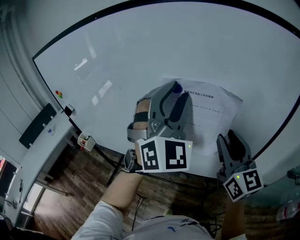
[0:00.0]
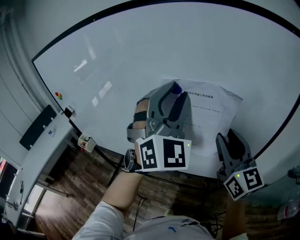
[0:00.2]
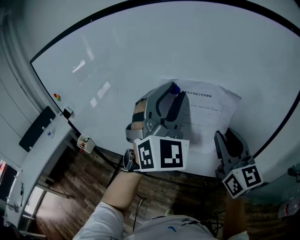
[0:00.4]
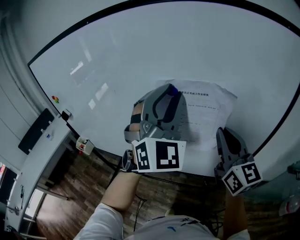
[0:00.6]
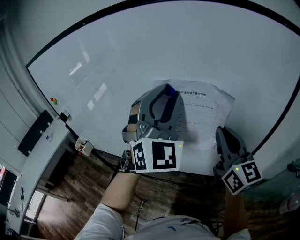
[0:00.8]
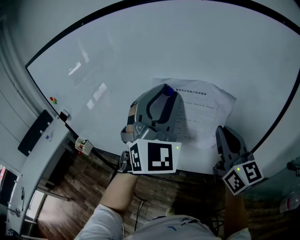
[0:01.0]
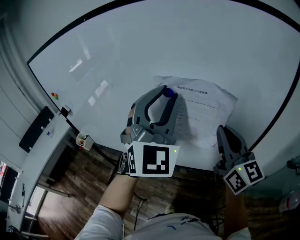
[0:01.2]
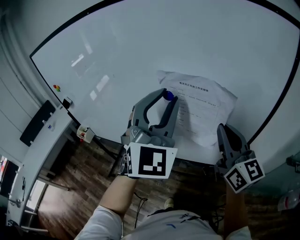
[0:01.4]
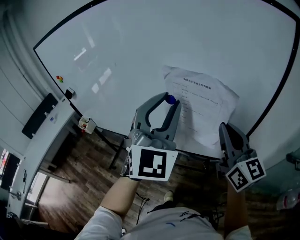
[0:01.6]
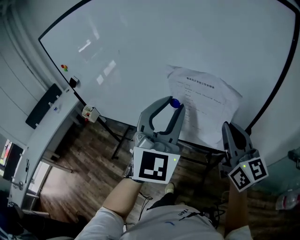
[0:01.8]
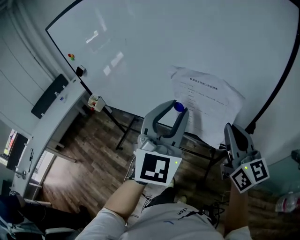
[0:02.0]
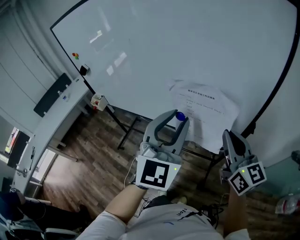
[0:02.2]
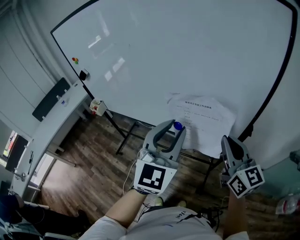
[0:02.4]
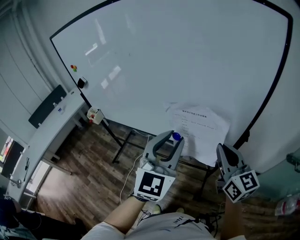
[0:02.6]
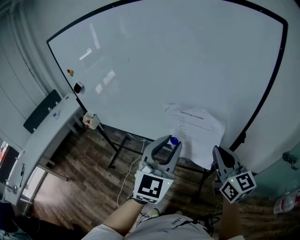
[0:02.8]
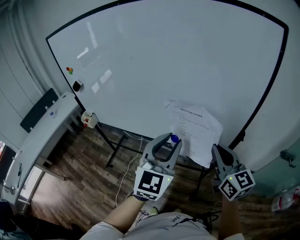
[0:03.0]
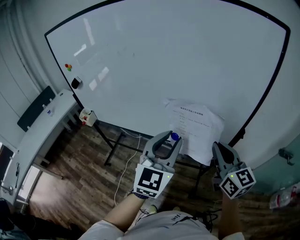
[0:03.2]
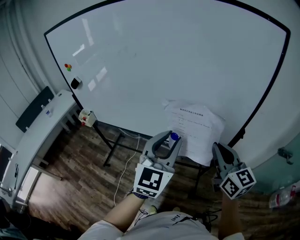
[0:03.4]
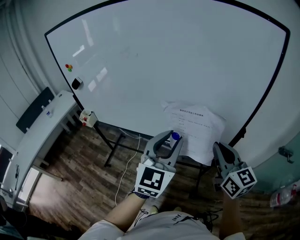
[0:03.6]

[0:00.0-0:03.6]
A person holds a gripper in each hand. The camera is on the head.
0:00.0 to 0:01.8: The grippers both shift backward and downward by some 15 cm. The left gripper changes its angle by roughly 20 degrees. The right gripper closes.
0:01.8 to 0:03.6: The right gripper is displaced to the left by roughly 5 cm. Meanwhile the left gripper travels downward and to the left by approximately 10 cm, and turns by approximately 20 degrees.

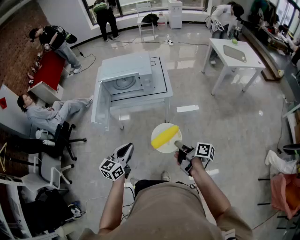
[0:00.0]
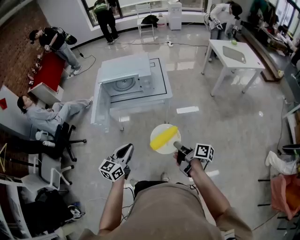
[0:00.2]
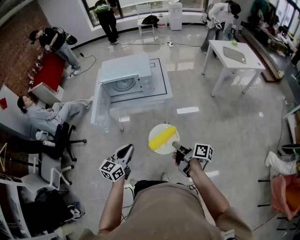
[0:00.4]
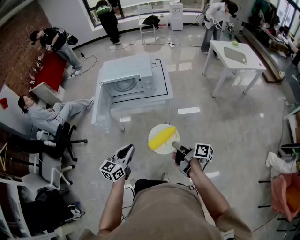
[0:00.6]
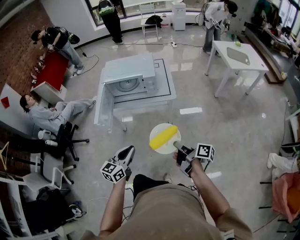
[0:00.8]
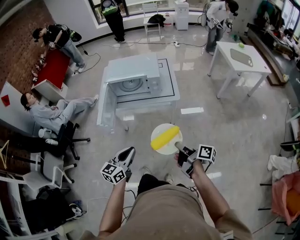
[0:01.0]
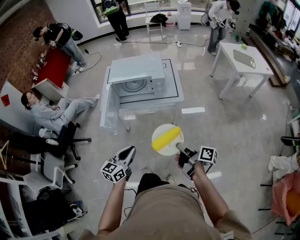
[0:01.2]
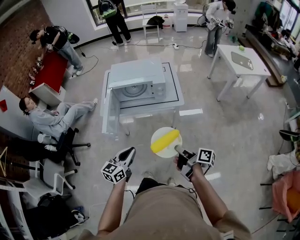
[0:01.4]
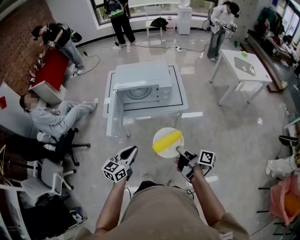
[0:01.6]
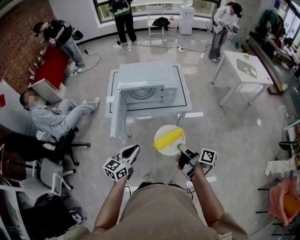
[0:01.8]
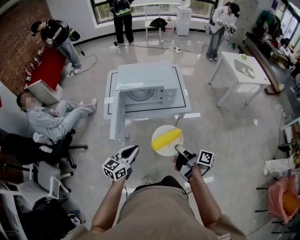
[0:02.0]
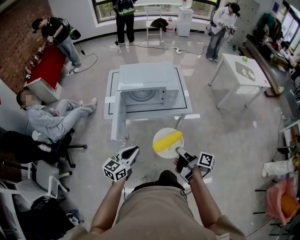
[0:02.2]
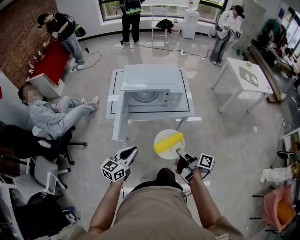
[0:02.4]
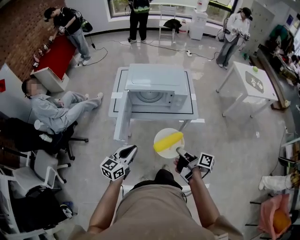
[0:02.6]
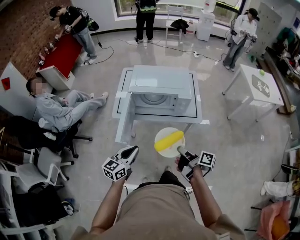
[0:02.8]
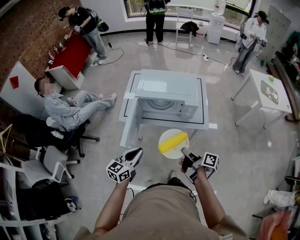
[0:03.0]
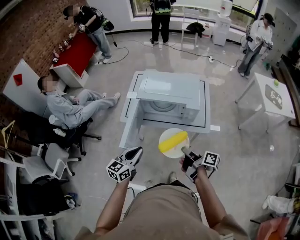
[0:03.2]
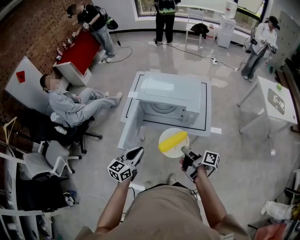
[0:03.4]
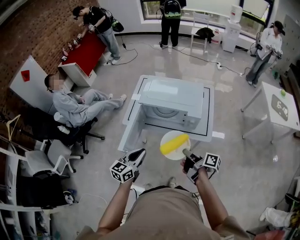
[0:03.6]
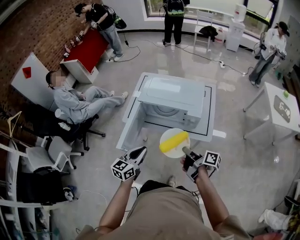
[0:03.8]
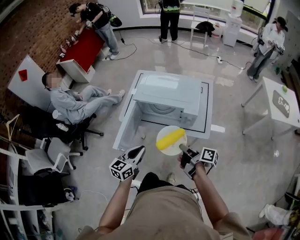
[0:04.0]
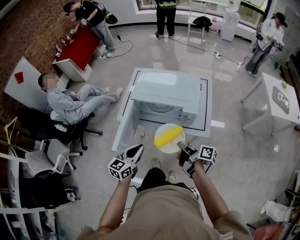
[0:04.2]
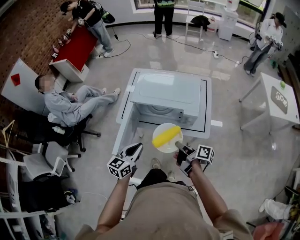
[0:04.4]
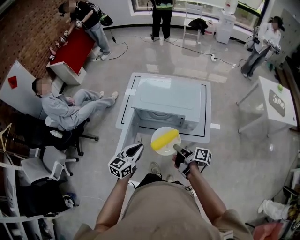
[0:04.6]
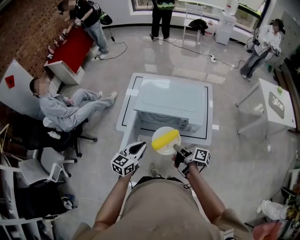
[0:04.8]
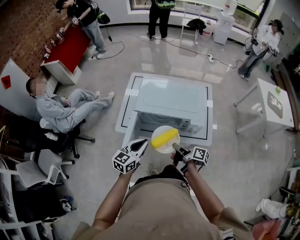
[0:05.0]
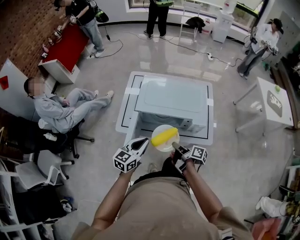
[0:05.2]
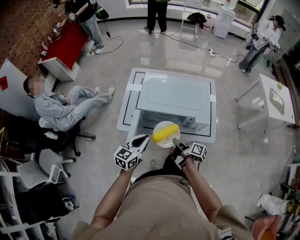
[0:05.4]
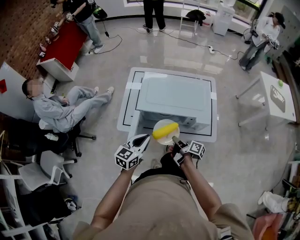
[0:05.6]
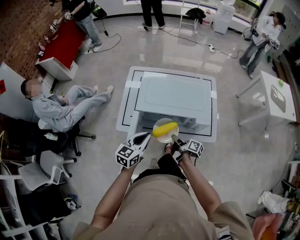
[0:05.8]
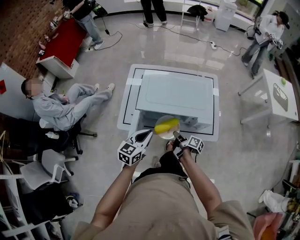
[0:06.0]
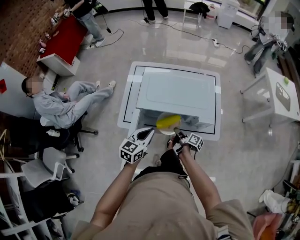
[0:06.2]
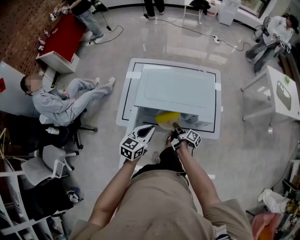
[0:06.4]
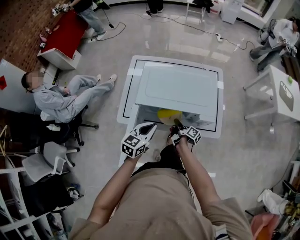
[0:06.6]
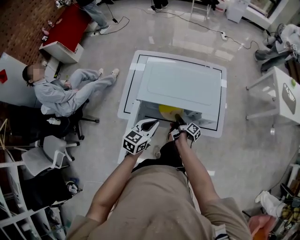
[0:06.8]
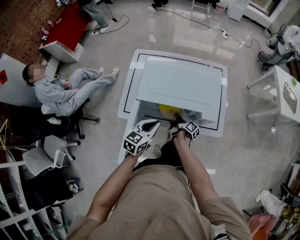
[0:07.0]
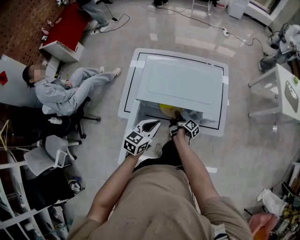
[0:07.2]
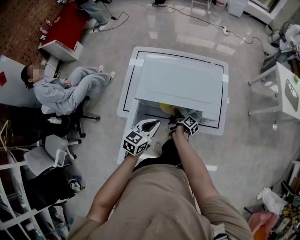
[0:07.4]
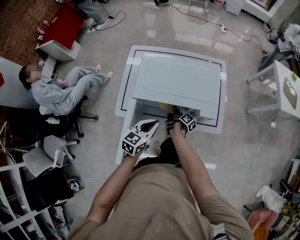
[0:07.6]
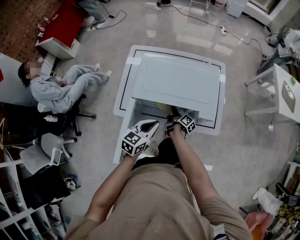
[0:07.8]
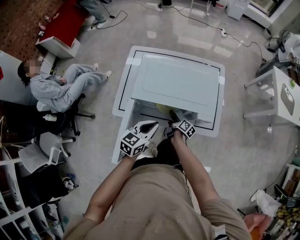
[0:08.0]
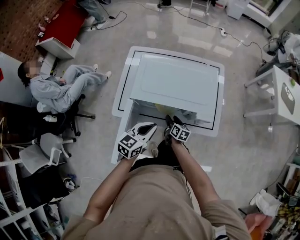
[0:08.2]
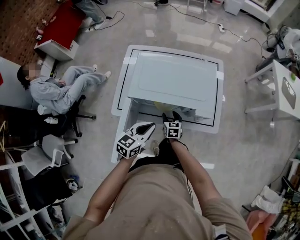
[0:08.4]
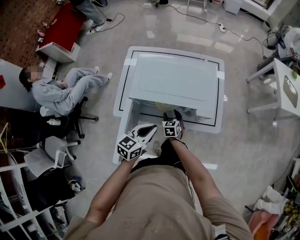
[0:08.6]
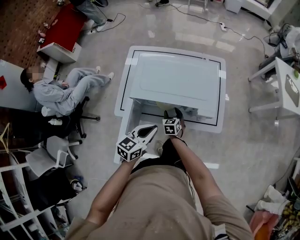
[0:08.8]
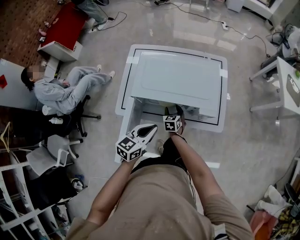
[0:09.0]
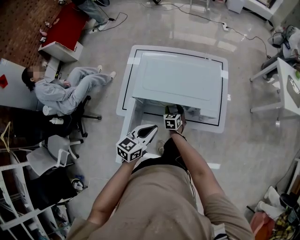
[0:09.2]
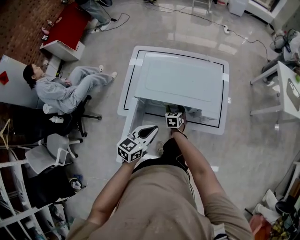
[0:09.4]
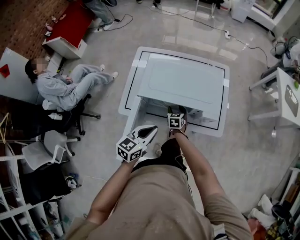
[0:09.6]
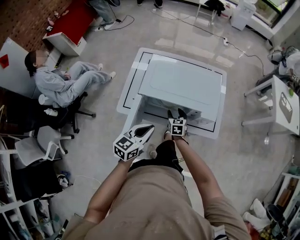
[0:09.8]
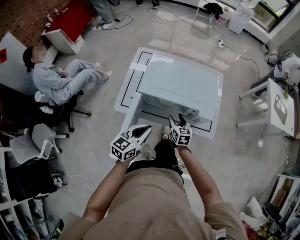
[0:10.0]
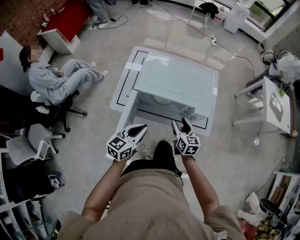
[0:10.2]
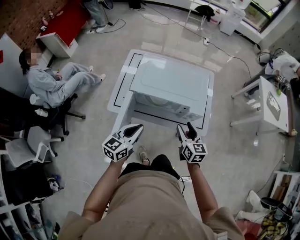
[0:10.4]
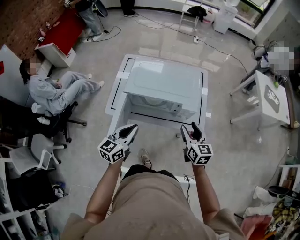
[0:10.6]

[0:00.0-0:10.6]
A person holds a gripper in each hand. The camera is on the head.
0:00.0 to 0:01.6: The two grippers go some 15 cm to the left and forward.
0:01.6 to 0:03.0: Both grippers travel together forward and to the left, about 15 cm.
0:03.0 to 0:04.6: The two grippers go some 15 cm forward.
0:04.6 to 0:06.0: The left gripper shifts roughly 15 cm forward, while the right gripper is displaced downward and forward by approximately 20 cm.
0:06.0 to 0:07.6: The right gripper shifts roughly 15 cm forward and downward; the left gripper moves roughly 5 cm.
0:07.6 to 0:09.0: The right gripper rolls counterclockwise, seen from behind, by some 80 degrees, and opens its fingers.
0:09.0 to 0:10.6: The left gripper shifts some 10 cm backward and upward. Meanwhile the right gripper travels upward, to the right and backward by approximately 35 cm, and swivels some 30 degrees.

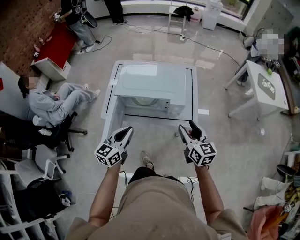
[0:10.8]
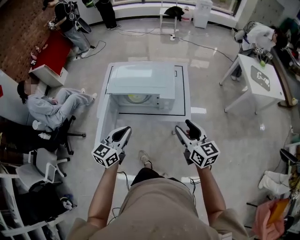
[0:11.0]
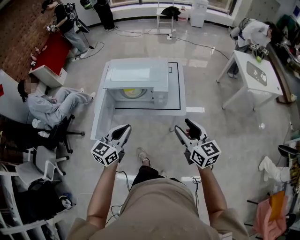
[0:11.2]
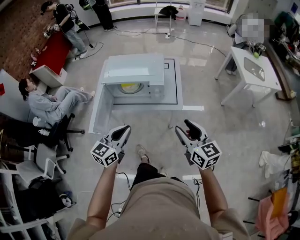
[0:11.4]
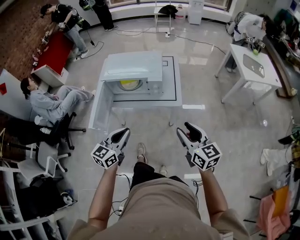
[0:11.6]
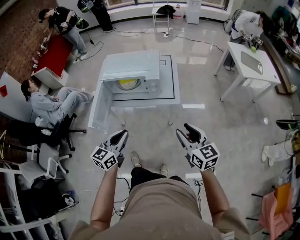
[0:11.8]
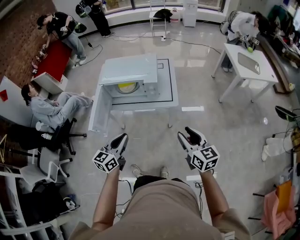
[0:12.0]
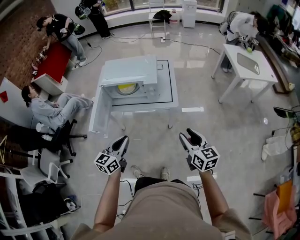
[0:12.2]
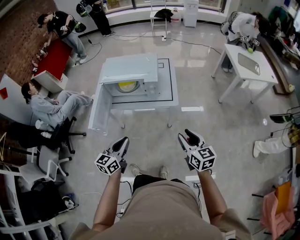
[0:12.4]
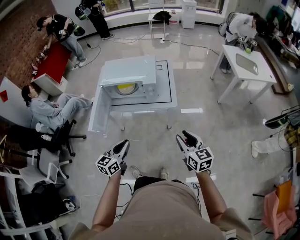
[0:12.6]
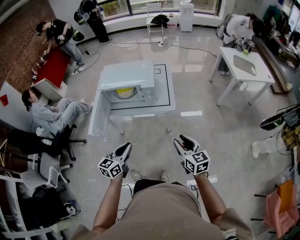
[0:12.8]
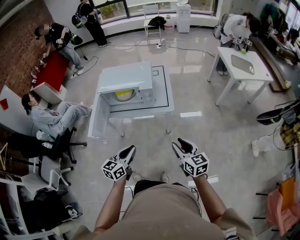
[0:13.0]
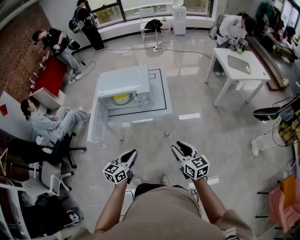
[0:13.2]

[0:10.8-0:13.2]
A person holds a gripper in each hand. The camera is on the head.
0:10.8 to 0:12.0: Both grippers move backward and to the right, some 25 cm.
0:12.0 to 0:13.2: The right gripper shifts by roughly 5 cm. The left gripper shifts approximately 5 cm to the right.

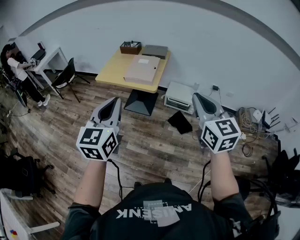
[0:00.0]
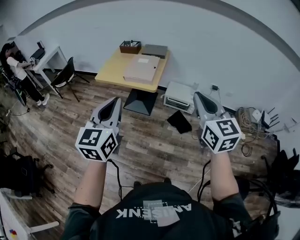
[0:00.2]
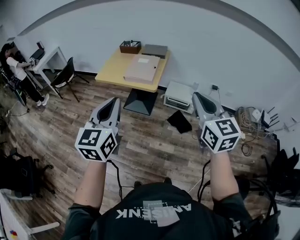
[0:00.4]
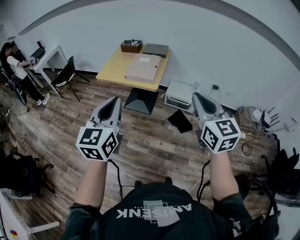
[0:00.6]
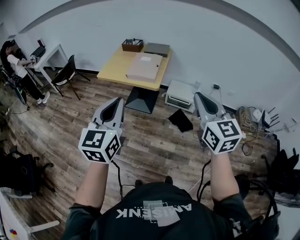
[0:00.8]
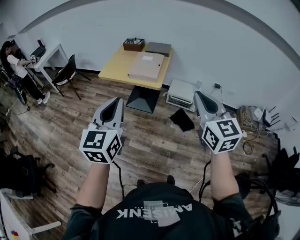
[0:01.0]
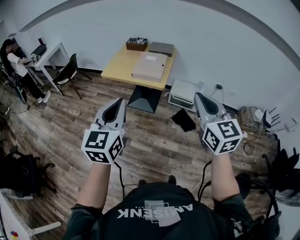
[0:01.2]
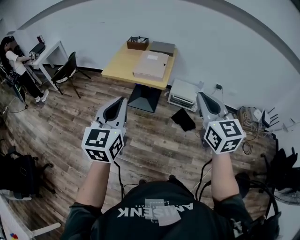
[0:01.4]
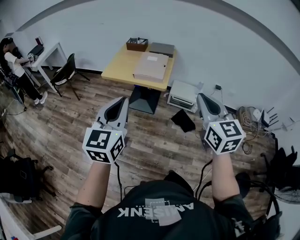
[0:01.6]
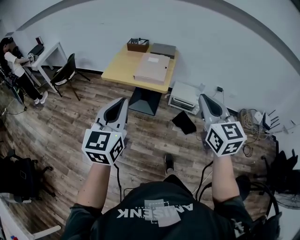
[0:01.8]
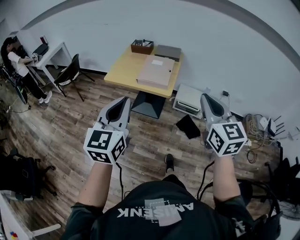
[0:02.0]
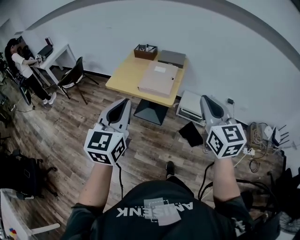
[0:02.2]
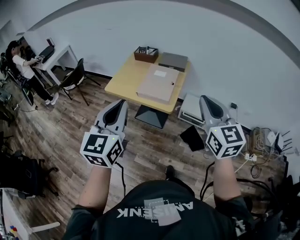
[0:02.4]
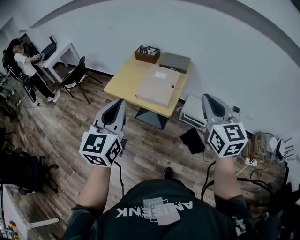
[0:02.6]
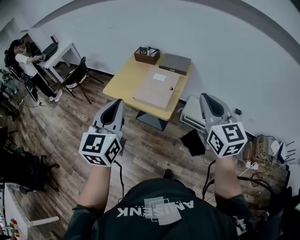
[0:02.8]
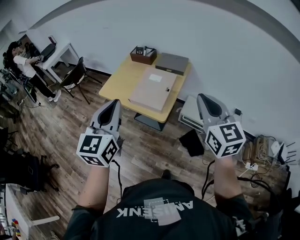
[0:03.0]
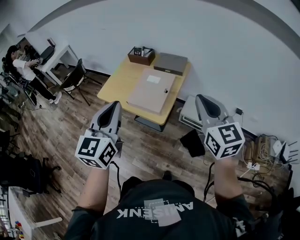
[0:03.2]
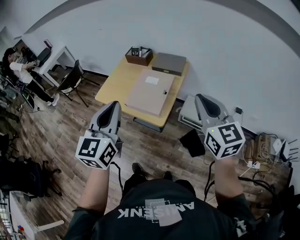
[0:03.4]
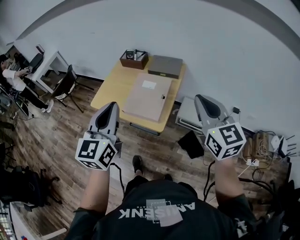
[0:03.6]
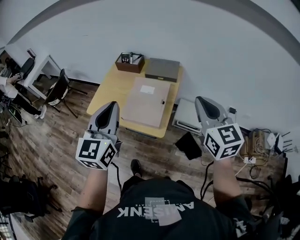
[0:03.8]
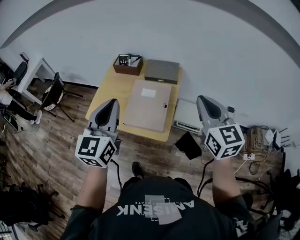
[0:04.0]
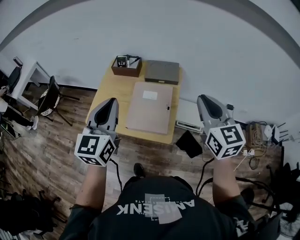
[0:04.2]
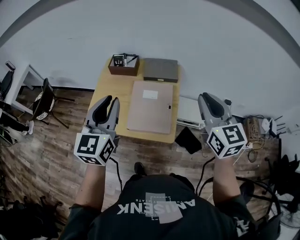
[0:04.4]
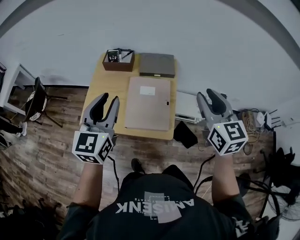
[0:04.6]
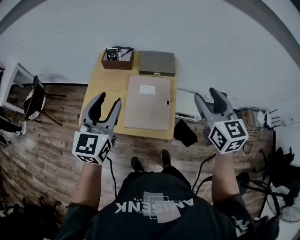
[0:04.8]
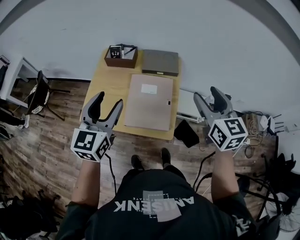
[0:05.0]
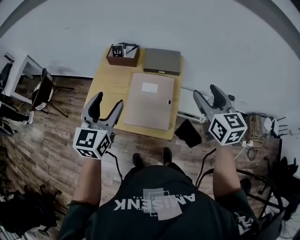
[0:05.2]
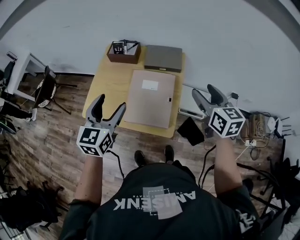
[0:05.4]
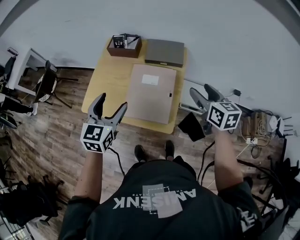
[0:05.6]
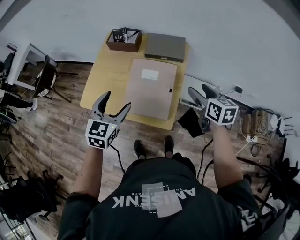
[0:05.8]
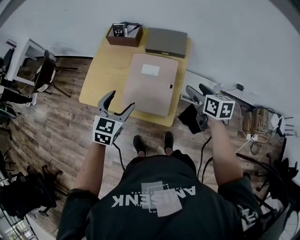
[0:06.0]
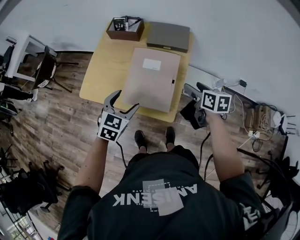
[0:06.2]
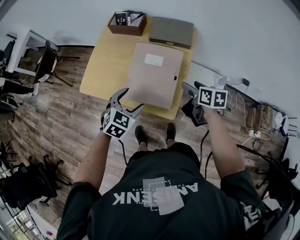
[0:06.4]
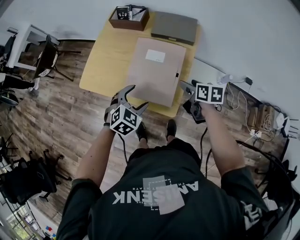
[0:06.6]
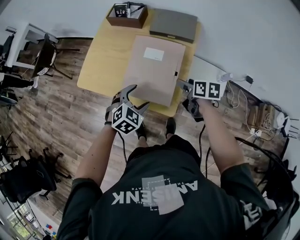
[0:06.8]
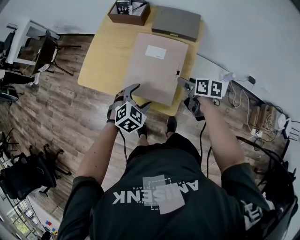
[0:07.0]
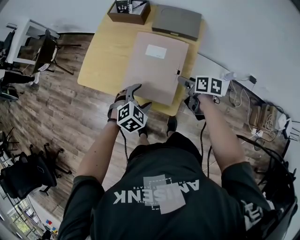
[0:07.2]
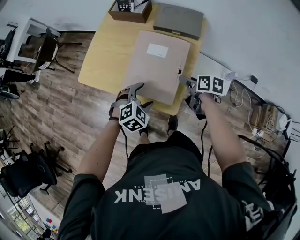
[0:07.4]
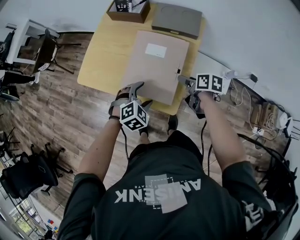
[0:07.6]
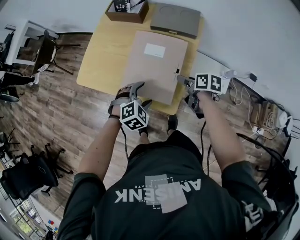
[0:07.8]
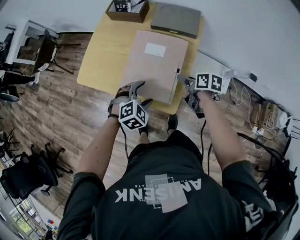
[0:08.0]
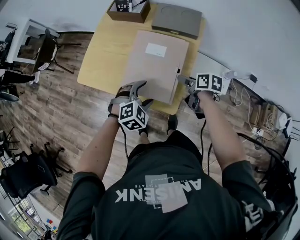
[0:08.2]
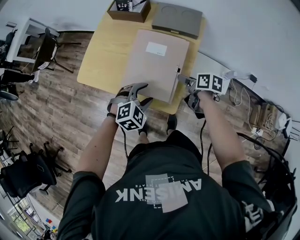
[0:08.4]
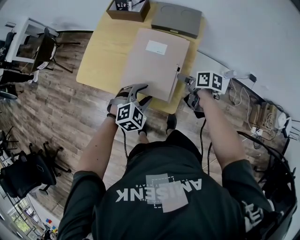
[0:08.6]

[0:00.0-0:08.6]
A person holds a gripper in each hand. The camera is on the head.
0:00.0 to 0:01.4: Both grippers move to the left, approximately 10 cm.
0:01.4 to 0:02.8: The grippers both shift forward by roughly 30 cm.
0:02.8 to 0:04.4: Both grippers travel together forward, approximately 25 cm.
0:04.4 to 0:05.8: The left gripper heads downward, covering some 15 cm, rotates approximately 20 degrees, and opens up; the right gripper goes approximately 20 cm downward and forward, swivels approximately 30 degrees, and opens.
0:05.8 to 0:07.2: The left gripper shifts some 20 cm downward and to the right, and points its fingers some 30 degrees further downward; the right gripper shifts roughly 20 cm downward, and turns by approximately 30 degrees.
0:07.2 to 0:08.6: The left gripper closes.
